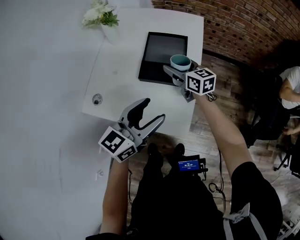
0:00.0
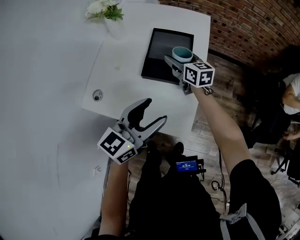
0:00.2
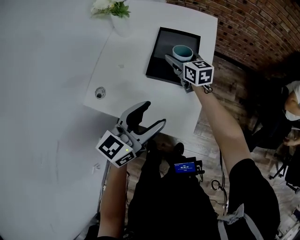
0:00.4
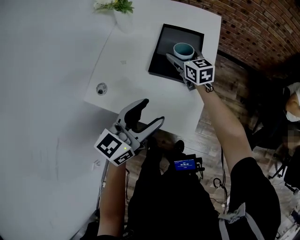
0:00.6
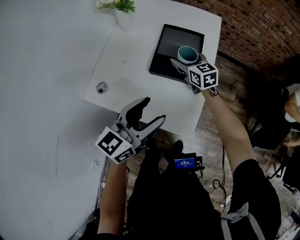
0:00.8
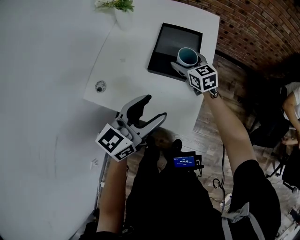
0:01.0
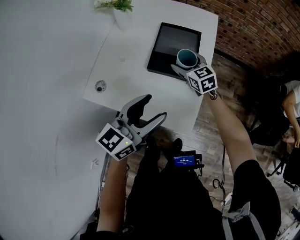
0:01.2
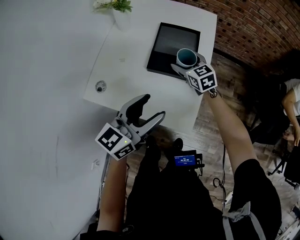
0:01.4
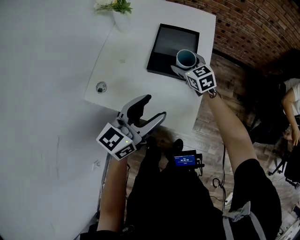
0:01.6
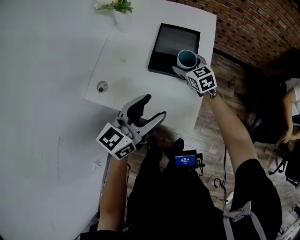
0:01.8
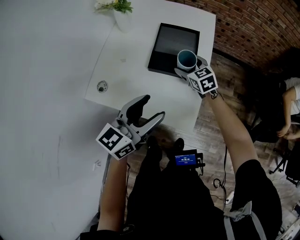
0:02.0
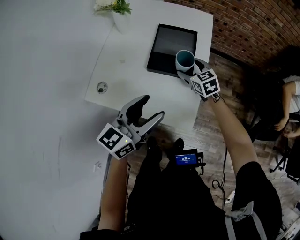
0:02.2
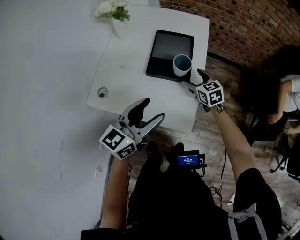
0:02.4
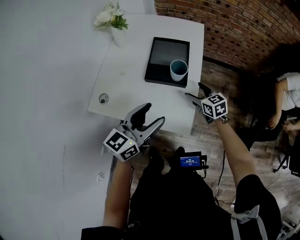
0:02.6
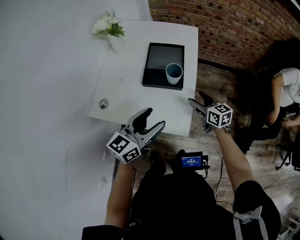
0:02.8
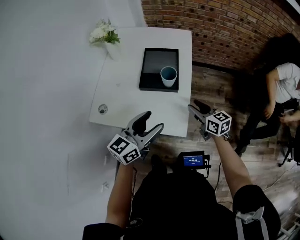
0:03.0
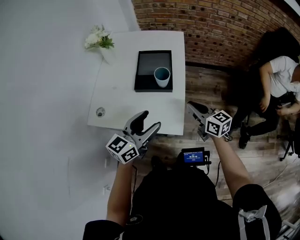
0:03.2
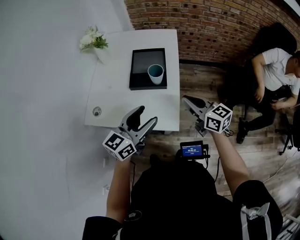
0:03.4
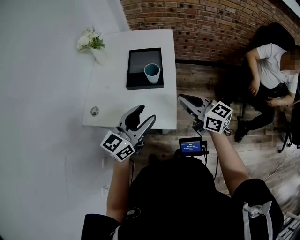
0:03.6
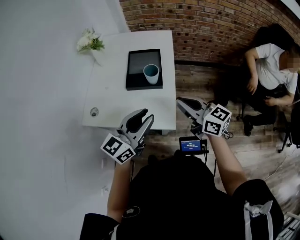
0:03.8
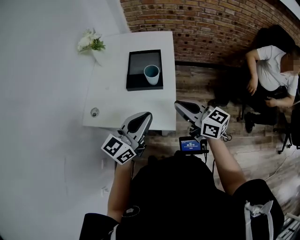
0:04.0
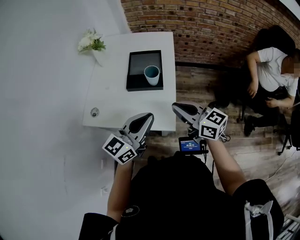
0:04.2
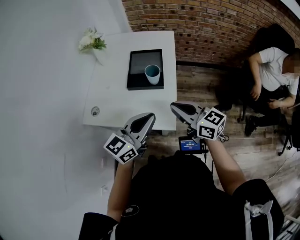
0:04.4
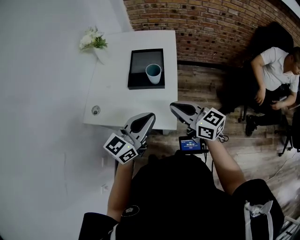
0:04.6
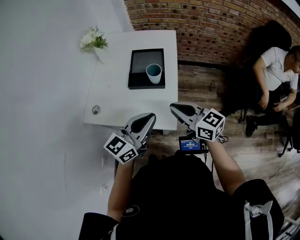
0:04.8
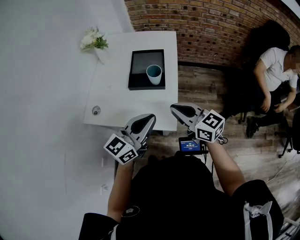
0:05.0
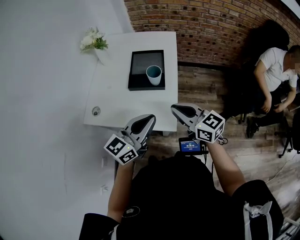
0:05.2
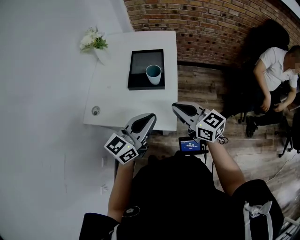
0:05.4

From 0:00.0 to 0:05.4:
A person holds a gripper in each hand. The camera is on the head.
From 0:00.0 to 0:01.4: The right gripper turns by some 30 degrees.
From 0:01.4 to 0:02.8: The right gripper travels backward and to the right by approximately 20 cm, and changes its angle by some 20 degrees.
From 0:02.8 to 0:04.0: The left gripper heads upward, covering roughly 5 cm, and closes its fingers, while the right gripper heads upward and backward, covering about 20 cm, swivels about 20 degrees, and closes up.
From 0:04.0 to 0:05.4: The grippers stay close to where they were, moving slightly.

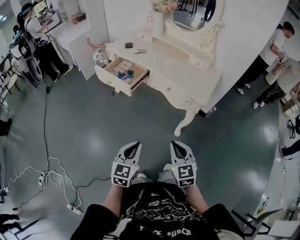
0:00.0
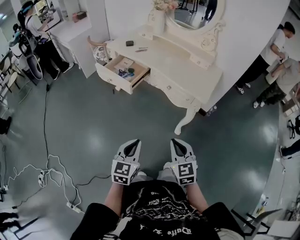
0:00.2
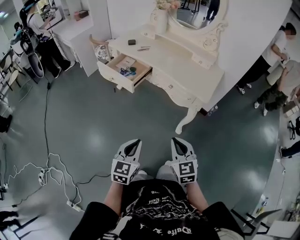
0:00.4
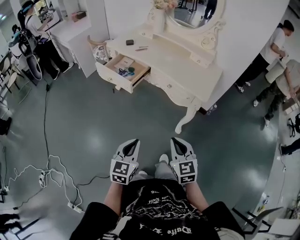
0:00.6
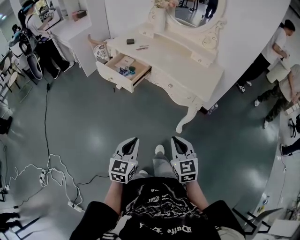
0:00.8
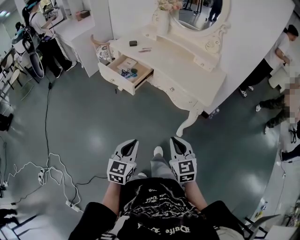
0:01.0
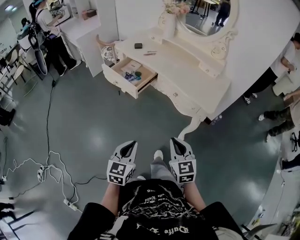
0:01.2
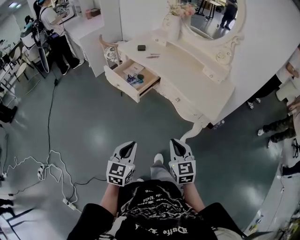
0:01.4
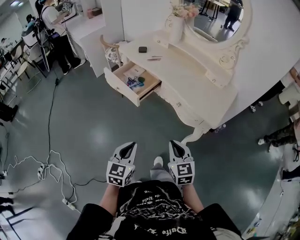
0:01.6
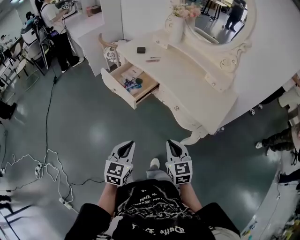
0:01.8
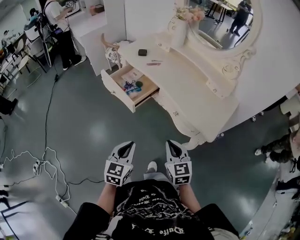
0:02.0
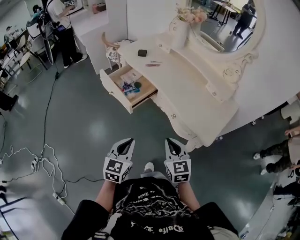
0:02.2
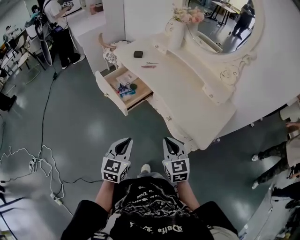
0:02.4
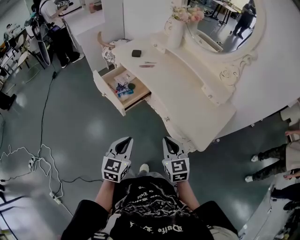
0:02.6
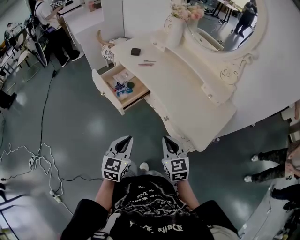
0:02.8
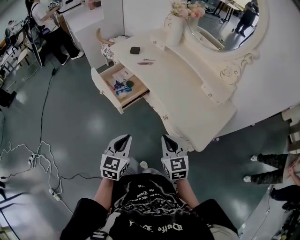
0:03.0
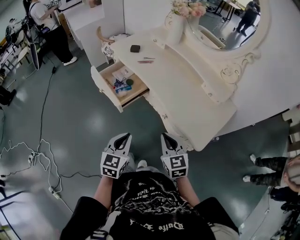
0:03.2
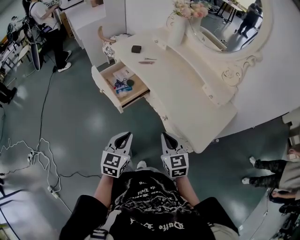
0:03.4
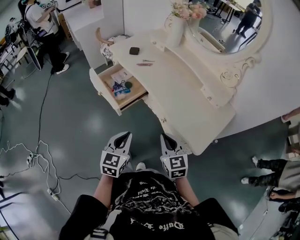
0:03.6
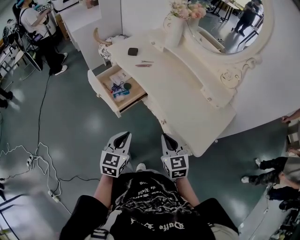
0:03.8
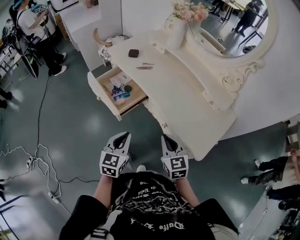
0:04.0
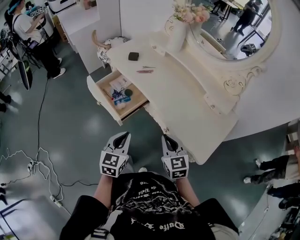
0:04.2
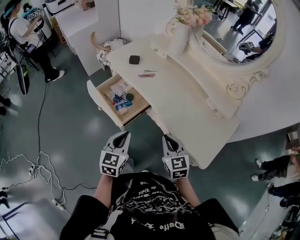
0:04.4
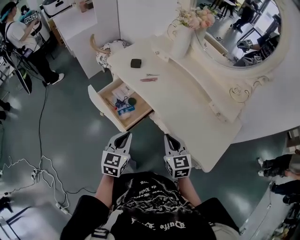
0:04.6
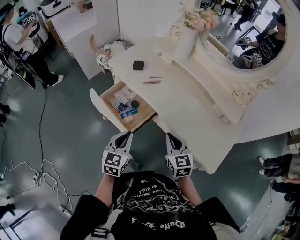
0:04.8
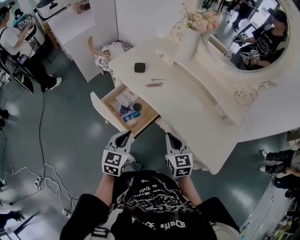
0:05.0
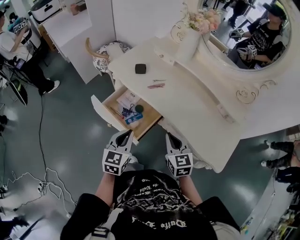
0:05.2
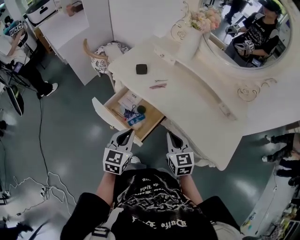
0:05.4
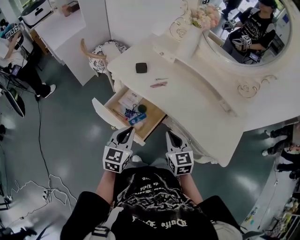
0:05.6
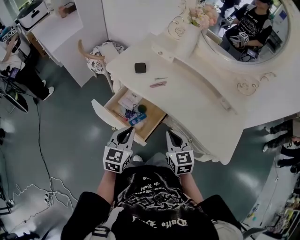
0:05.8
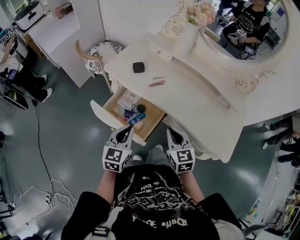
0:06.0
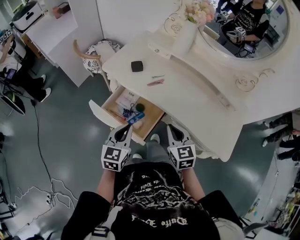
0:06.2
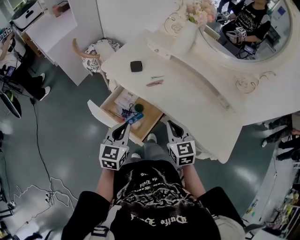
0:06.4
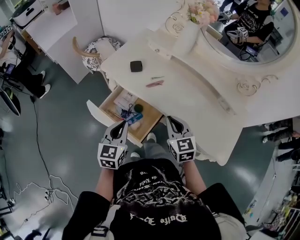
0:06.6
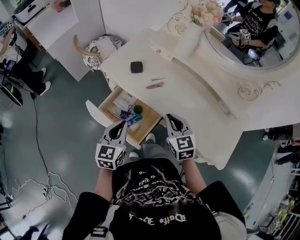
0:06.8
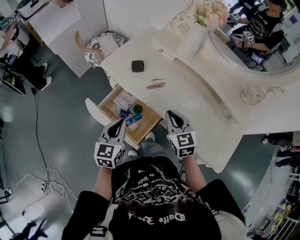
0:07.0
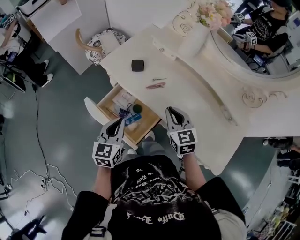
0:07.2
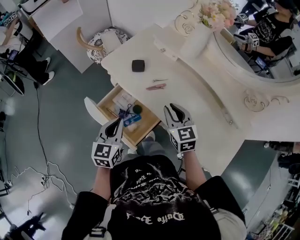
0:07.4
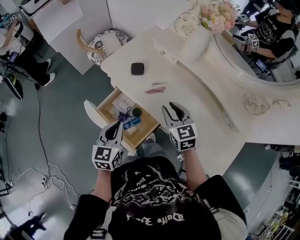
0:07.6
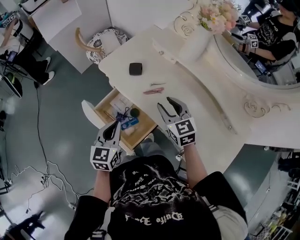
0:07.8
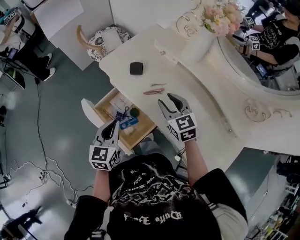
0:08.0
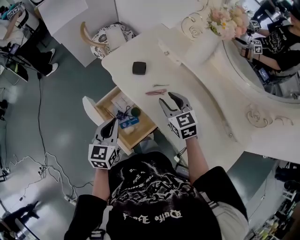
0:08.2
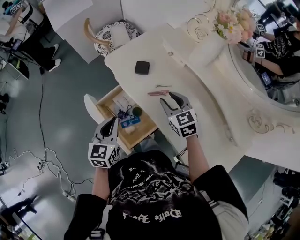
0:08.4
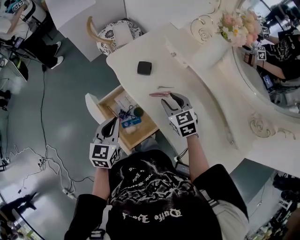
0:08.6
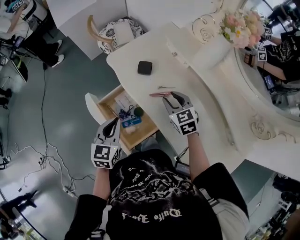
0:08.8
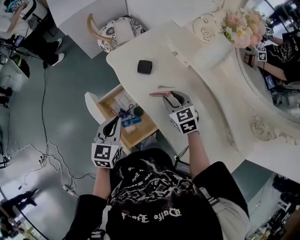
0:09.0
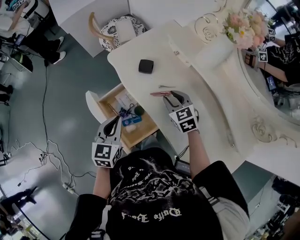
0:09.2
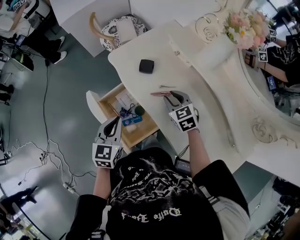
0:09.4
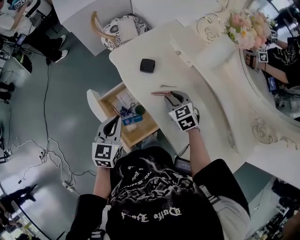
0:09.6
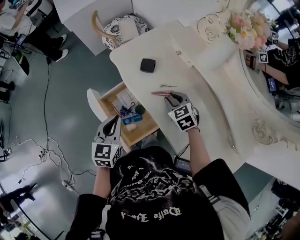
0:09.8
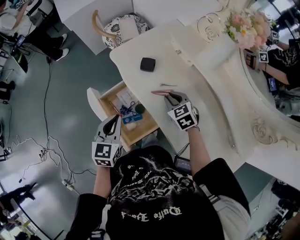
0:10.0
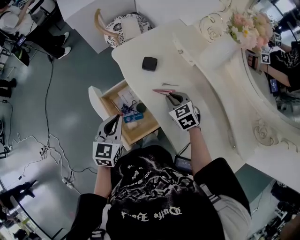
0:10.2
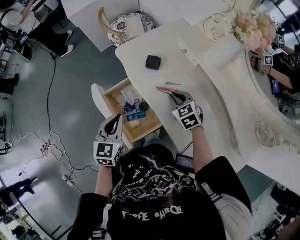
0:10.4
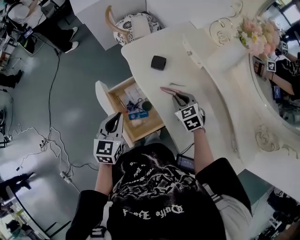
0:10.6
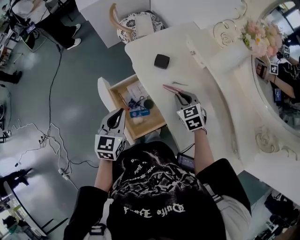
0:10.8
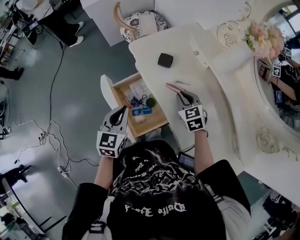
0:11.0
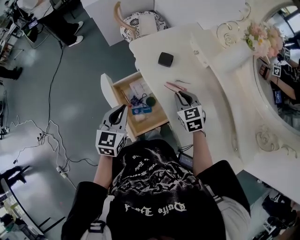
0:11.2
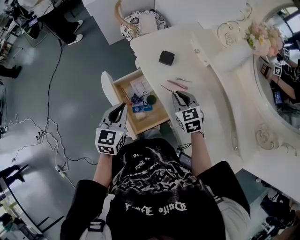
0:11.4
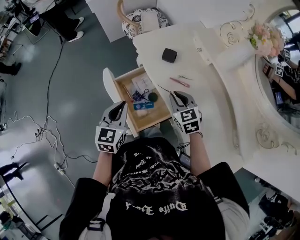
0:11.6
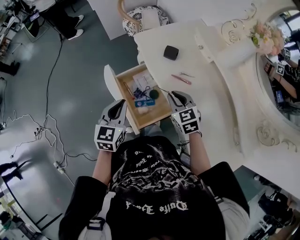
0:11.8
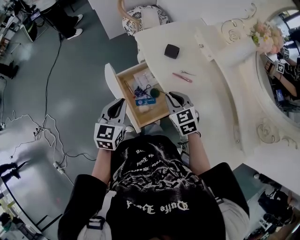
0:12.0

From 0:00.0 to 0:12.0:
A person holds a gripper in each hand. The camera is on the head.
From 0:00.0 to 0:01.6: The two grippers go roughly 10 cm forward.
From 0:01.6 to 0:03.0: Both grippers travel together forward and to the right, roughly 15 cm.
From 0:03.0 to 0:04.4: The two grippers go approximately 10 cm forward.
From 0:04.4 to 0:06.0: Both grippers travel together to the left and forward, approximately 15 cm.
From 0:06.0 to 0:07.6: The right gripper heads forward, covering about 15 cm, and opens up. The left gripper travels forward by some 5 cm.
From 0:07.6 to 0:09.0: The right gripper moves forward and downward, roughly 10 cm, and rotates some 20 degrees.
From 0:09.0 to 0:10.4: The right gripper closes.
From 0:10.4 to 0:12.0: The left gripper moves to the left, approximately 5 cm, while the right gripper shifts about 10 cm to the left and backward.

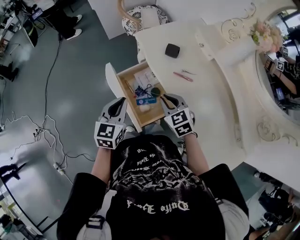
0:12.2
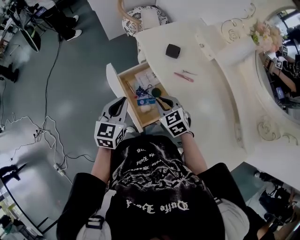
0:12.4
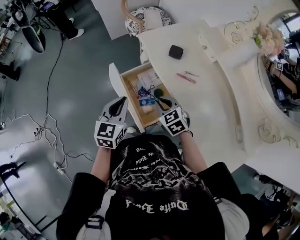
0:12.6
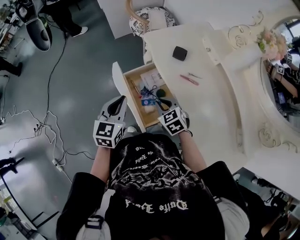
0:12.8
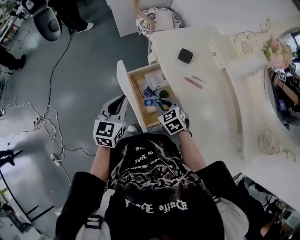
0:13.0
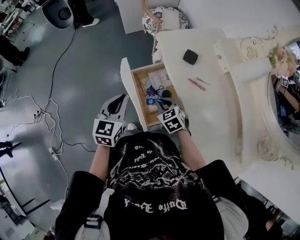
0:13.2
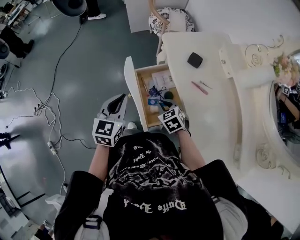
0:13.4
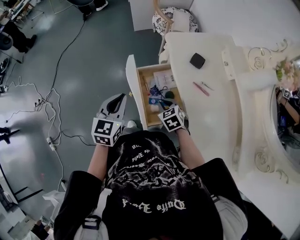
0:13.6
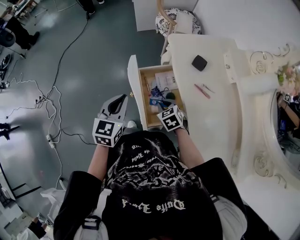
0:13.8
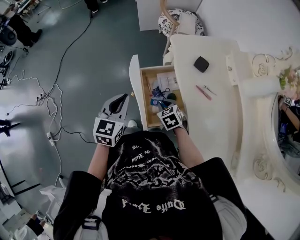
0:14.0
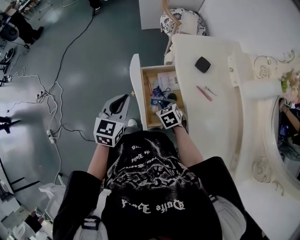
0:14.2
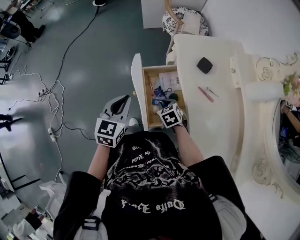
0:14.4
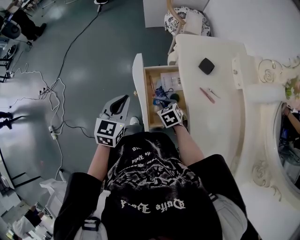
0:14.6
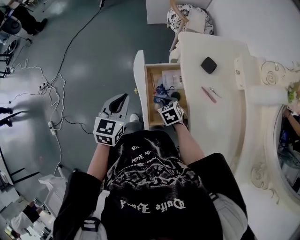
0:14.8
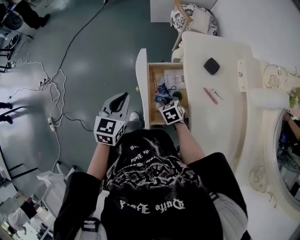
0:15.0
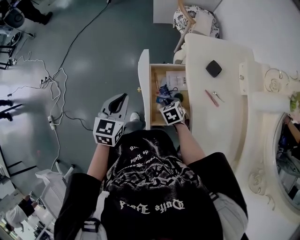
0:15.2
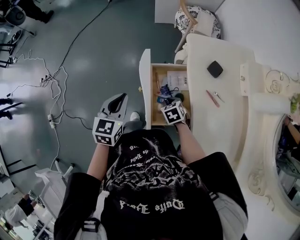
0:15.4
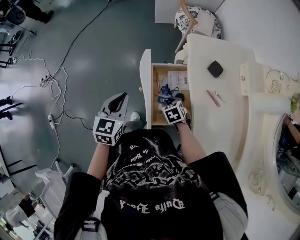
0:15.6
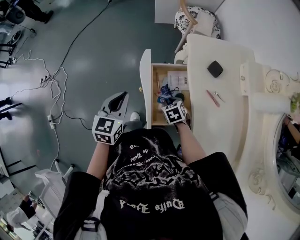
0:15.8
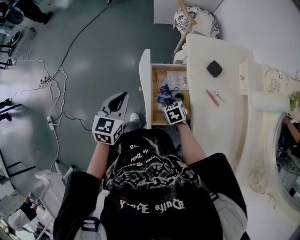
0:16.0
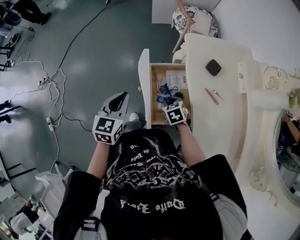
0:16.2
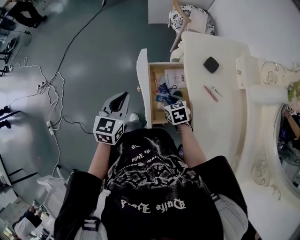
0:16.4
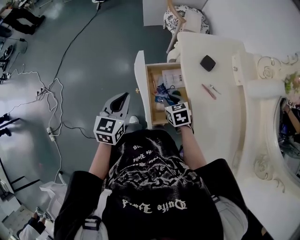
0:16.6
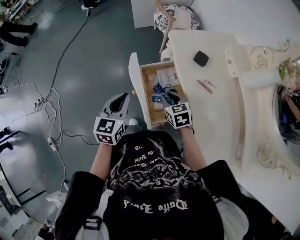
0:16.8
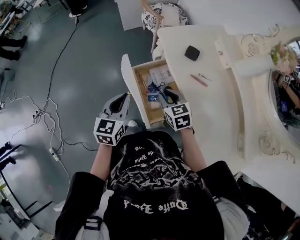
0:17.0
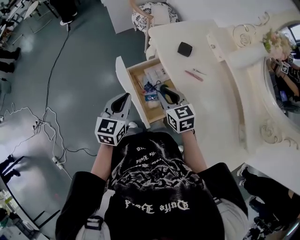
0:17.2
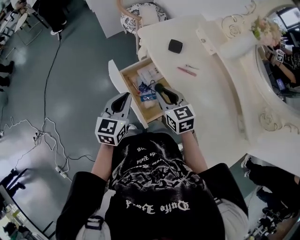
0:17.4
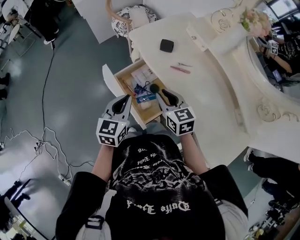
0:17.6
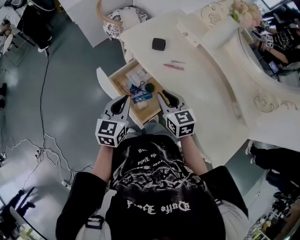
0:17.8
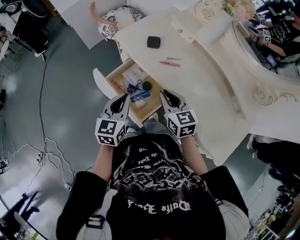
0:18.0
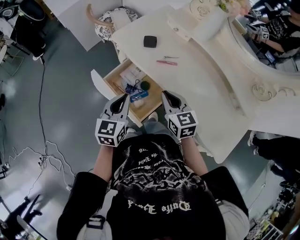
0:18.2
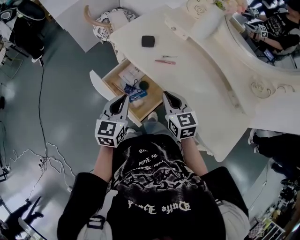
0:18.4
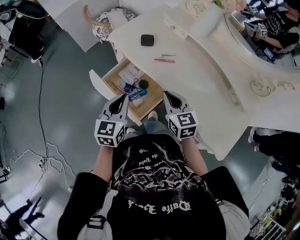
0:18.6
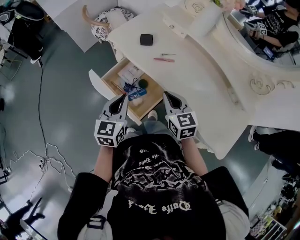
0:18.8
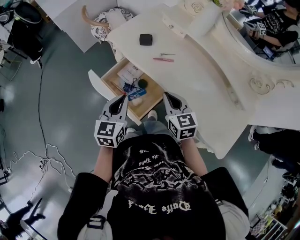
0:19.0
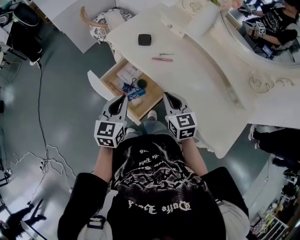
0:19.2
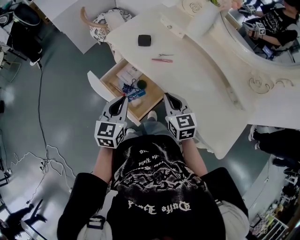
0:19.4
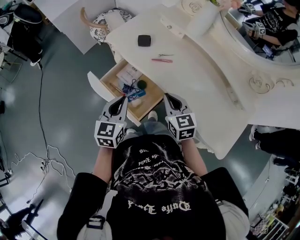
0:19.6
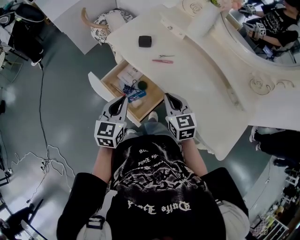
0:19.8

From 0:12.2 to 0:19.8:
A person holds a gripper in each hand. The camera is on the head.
From 0:12.2 to 0:13.8: The left gripper travels to the left by some 5 cm; the right gripper heads downward and to the left, covering approximately 10 cm, and rotates approximately 20 degrees.
From 0:13.8 to 0:15.2: The grippers stay close to where they were, moving slightly.
From 0:15.2 to 0:16.8: The right gripper shifts approximately 10 cm upward, and swivels approximately 20 degrees.
From 0:16.8 to 0:18.2: The left gripper moves about 10 cm, and rotates about 30 degrees, while the right gripper shifts by some 15 cm, and rotates about 40 degrees.
From 0:18.2 to 0:19.8: The grippers make only small movements.
